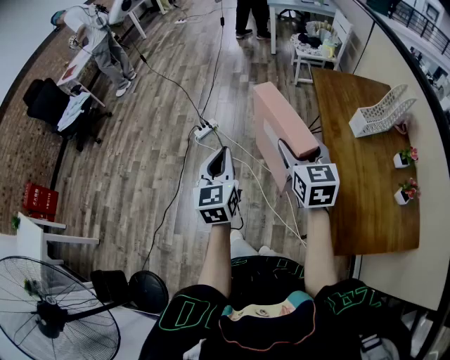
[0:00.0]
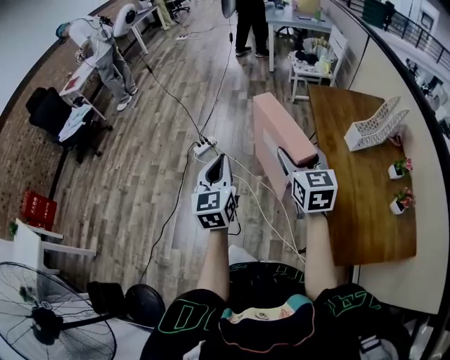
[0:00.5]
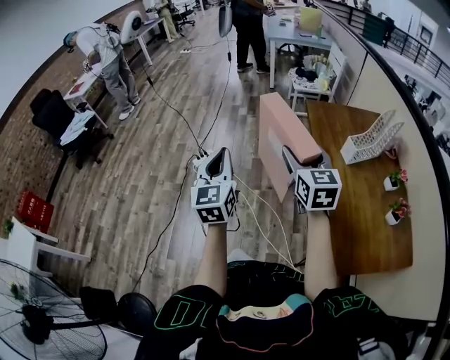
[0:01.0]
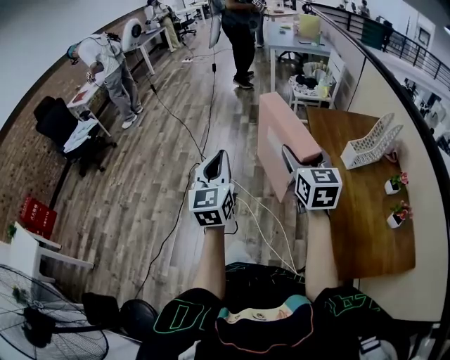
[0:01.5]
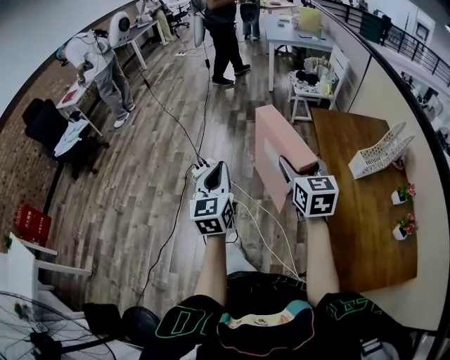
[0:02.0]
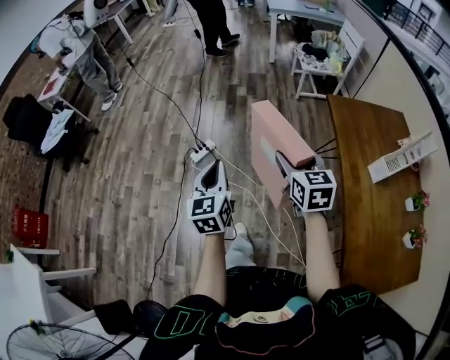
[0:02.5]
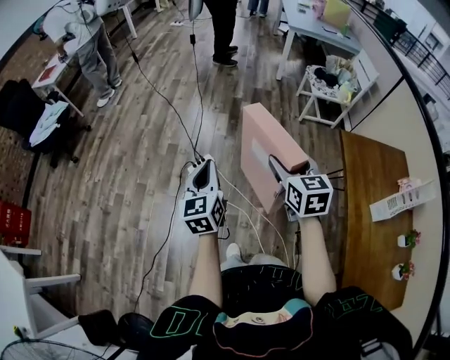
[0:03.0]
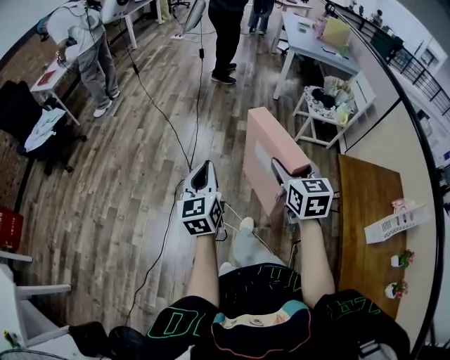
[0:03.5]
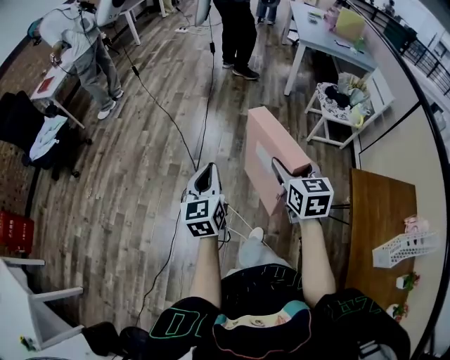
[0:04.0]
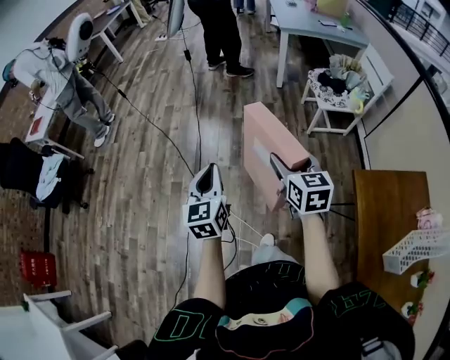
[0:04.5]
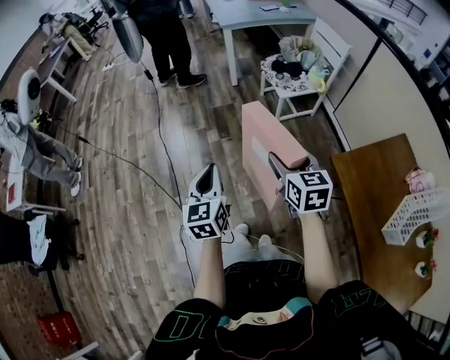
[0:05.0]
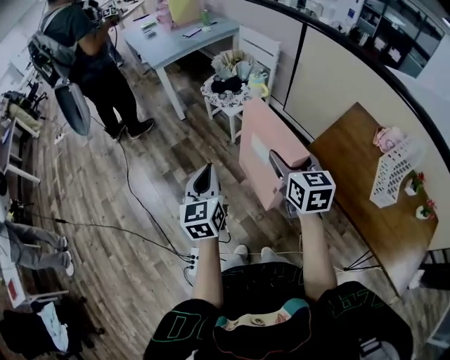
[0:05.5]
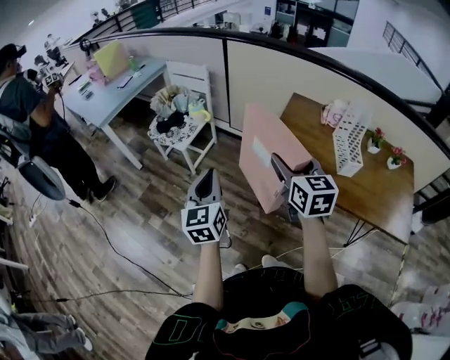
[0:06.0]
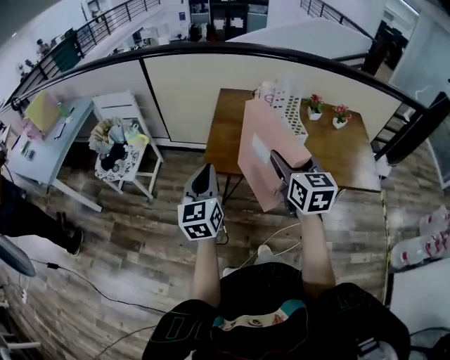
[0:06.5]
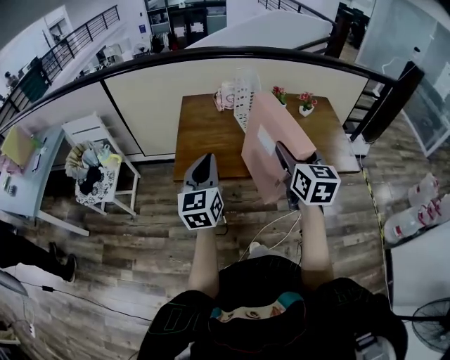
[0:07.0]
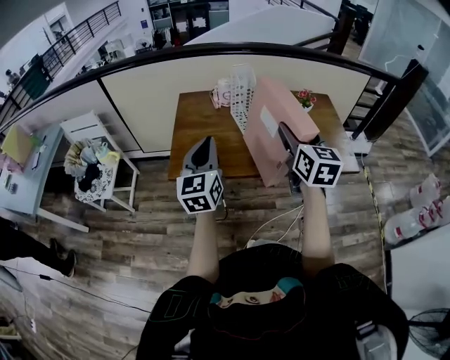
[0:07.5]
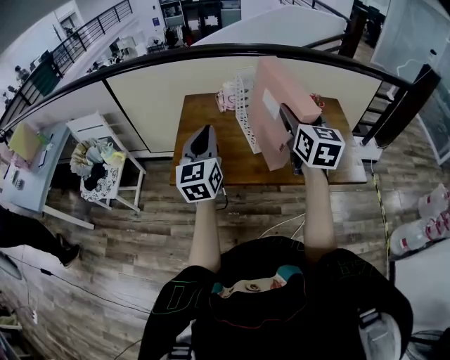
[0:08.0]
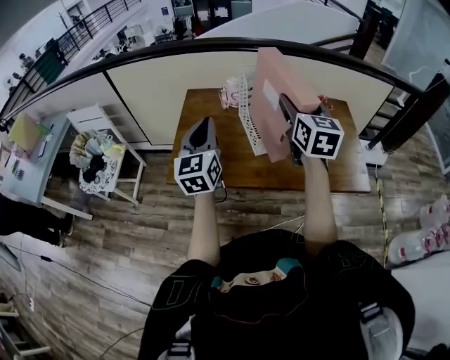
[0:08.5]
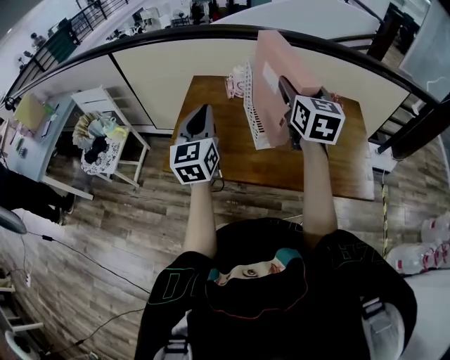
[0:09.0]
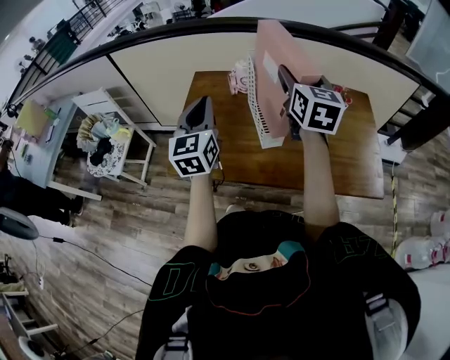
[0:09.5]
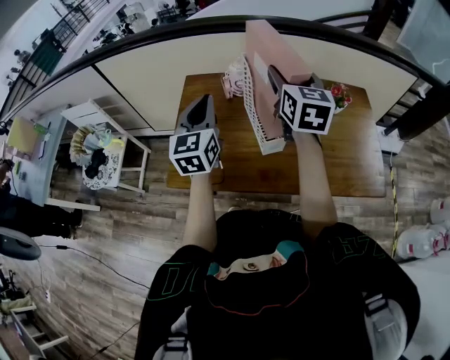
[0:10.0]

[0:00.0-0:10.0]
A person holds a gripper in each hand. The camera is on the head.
0:00.0 to 0:02.0: The two grippers go roughly 10 cm forward.
0:02.0 to 0:04.0: The pair of grippers is taken forward, approximately 50 cm.
0:04.0 to 0:06.0: The right gripper ends up approximately 30 cm from where it was, and rotates about 70 degrees, while the left gripper shifts by some 50 cm, and rotates about 70 degrees.
0:06.0 to 0:08.0: The left gripper changes place by about 40 cm, and turns by approximately 30 degrees; the right gripper ends up approximately 40 cm from where it was, and swivels about 40 degrees.
0:08.0 to 0:10.0: Both grippers travel together forward, roughly 20 cm.

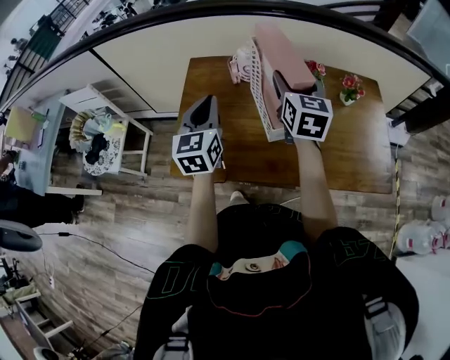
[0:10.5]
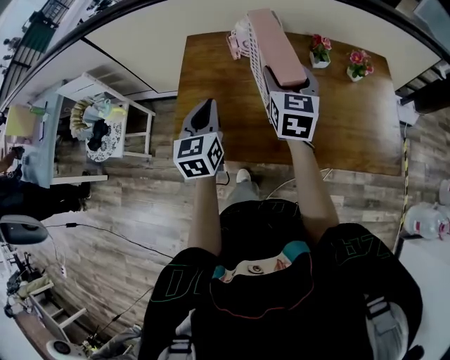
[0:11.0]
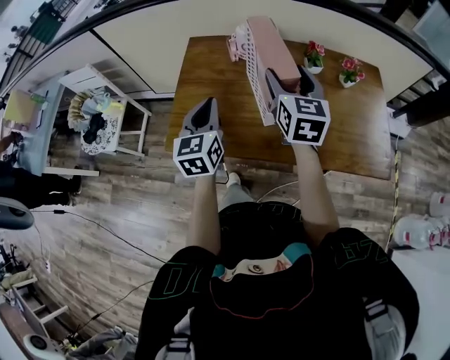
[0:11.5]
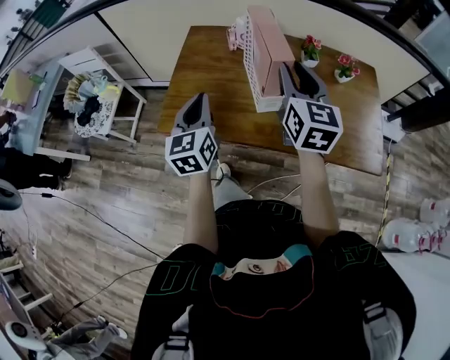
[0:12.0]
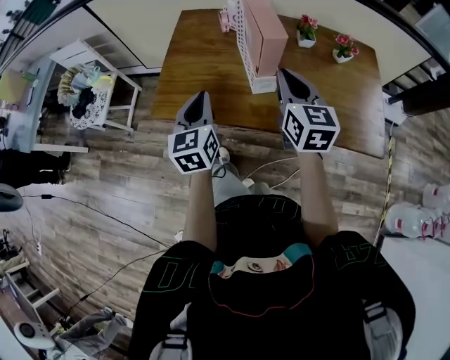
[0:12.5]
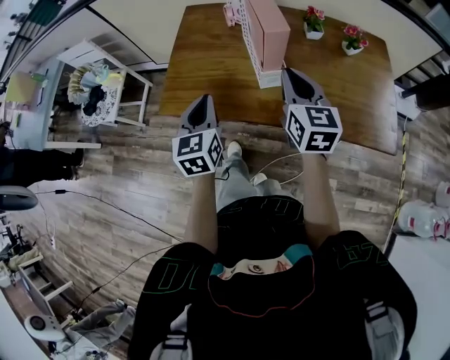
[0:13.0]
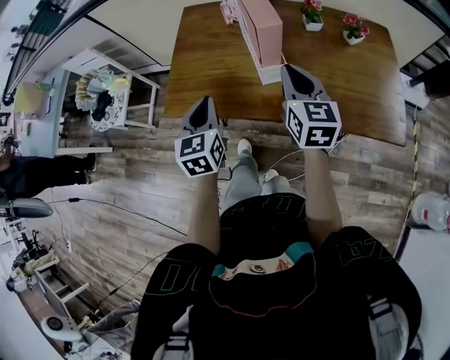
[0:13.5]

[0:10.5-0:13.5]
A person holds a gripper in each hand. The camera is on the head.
0:10.5 to 0:12.0: Both grippers move backward, some 15 cm. The right gripper closes its fingers.
0:12.0 to 0:13.5: The right gripper travels downward by approximately 10 cm, and closes its fingers. The left gripper moves downward, roughly 5 cm.

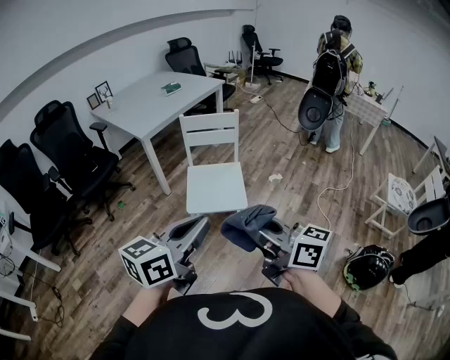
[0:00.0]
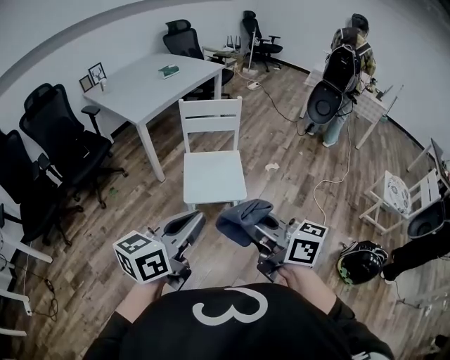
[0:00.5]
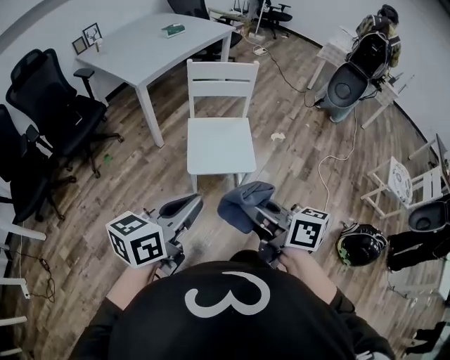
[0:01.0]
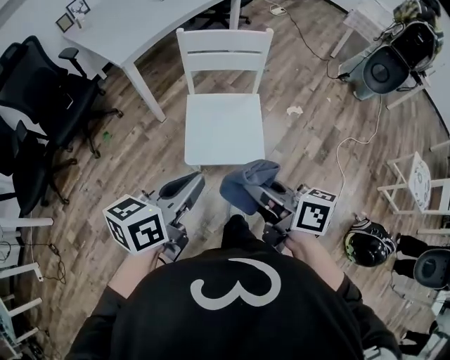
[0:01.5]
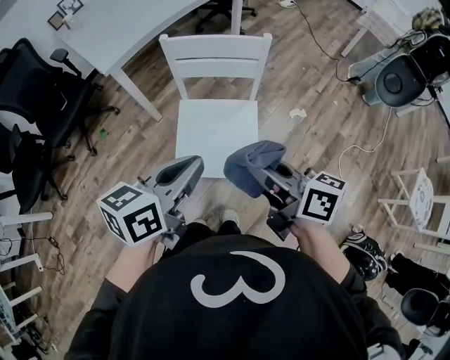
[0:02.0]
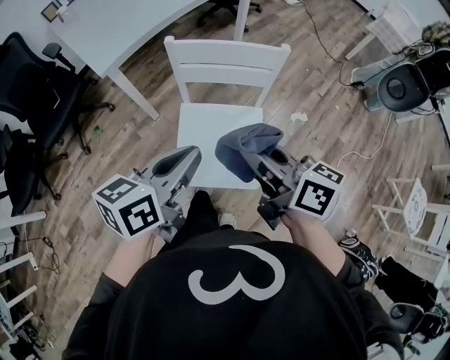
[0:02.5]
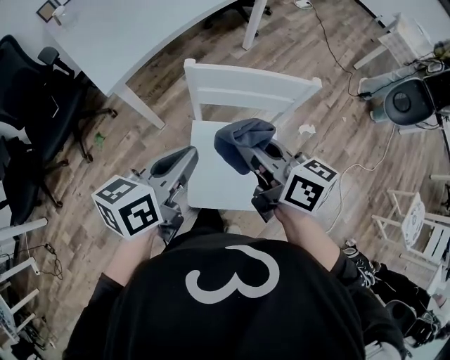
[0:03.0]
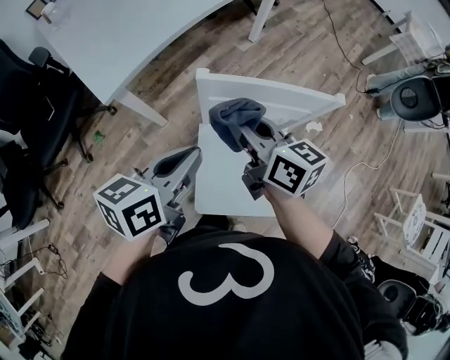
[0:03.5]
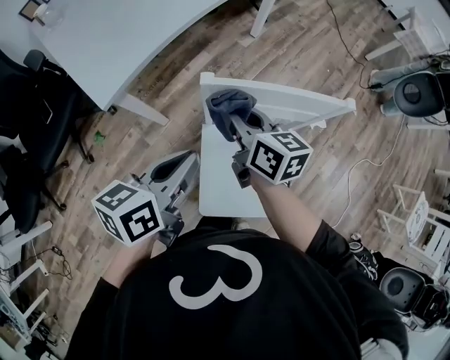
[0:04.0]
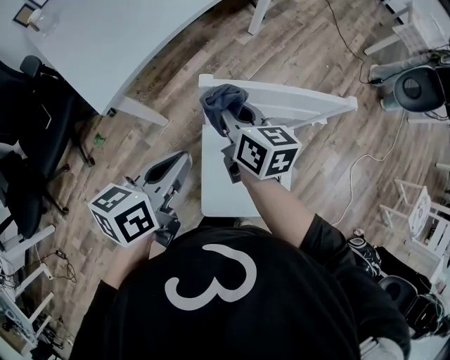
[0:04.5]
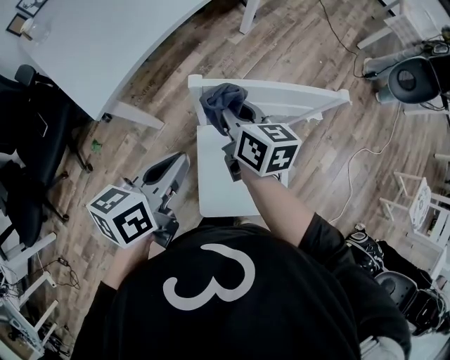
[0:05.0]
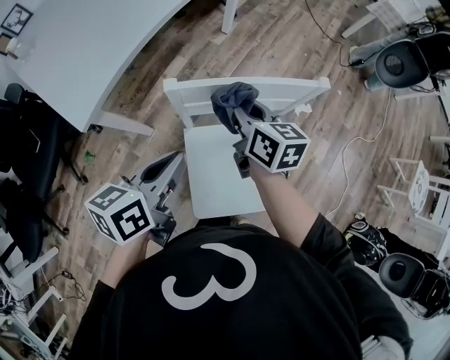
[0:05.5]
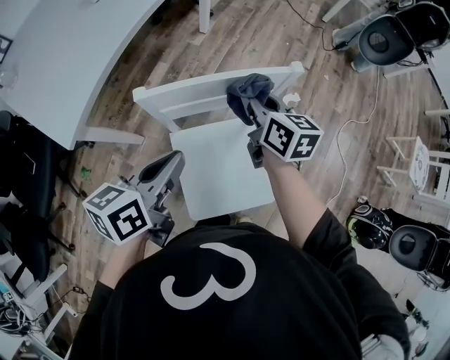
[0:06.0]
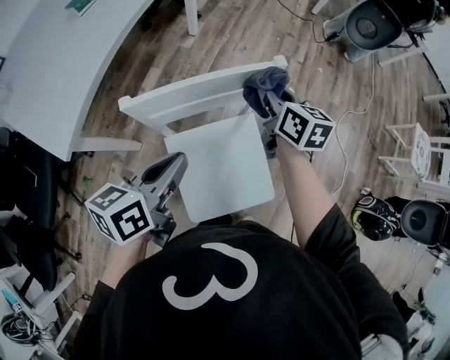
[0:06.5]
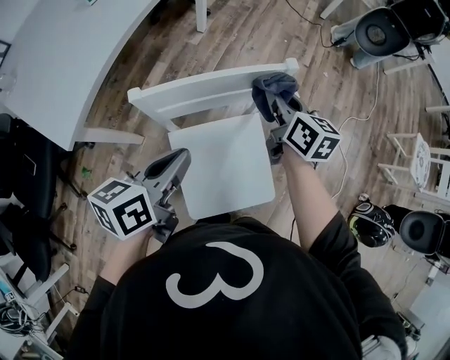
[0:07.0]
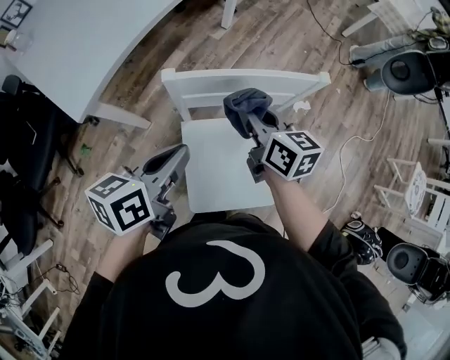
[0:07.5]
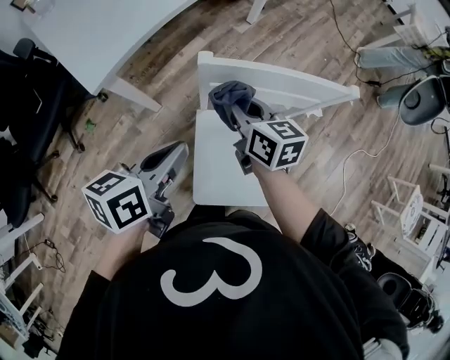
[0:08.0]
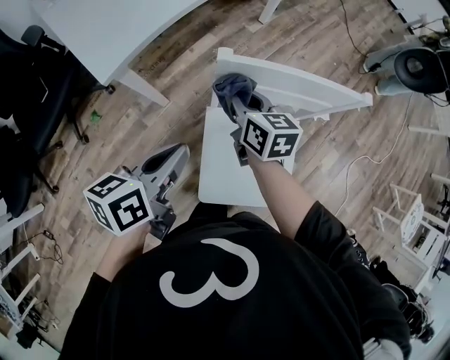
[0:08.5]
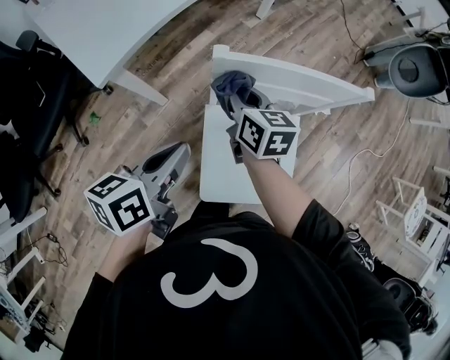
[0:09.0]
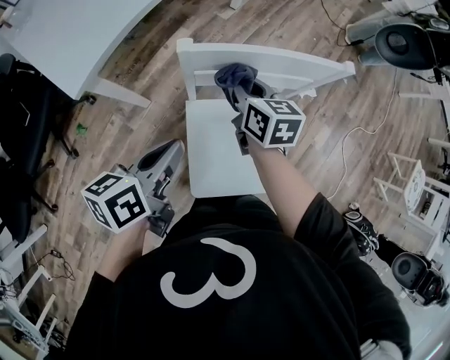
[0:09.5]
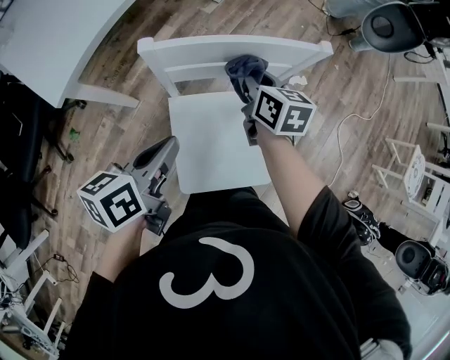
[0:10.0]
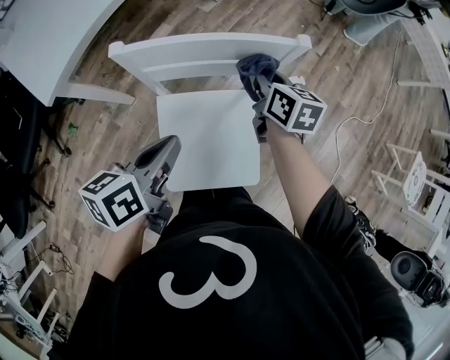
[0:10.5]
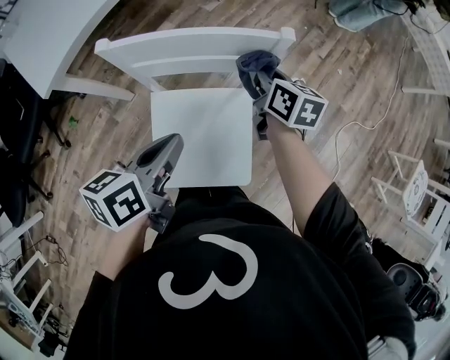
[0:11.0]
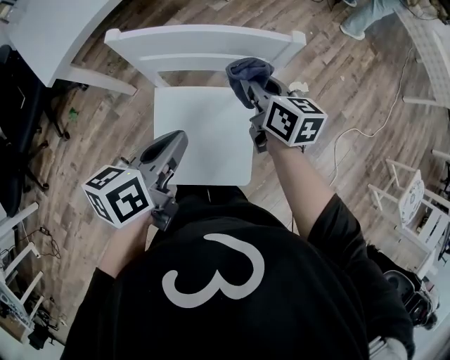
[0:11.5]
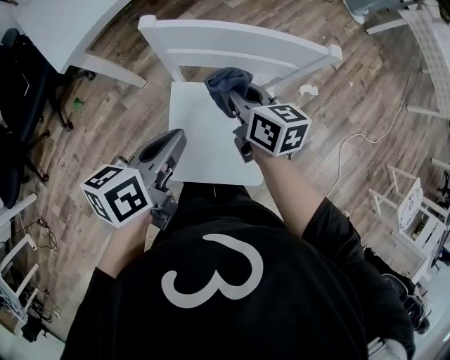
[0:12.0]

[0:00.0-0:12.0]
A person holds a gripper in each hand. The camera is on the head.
0:00.0 to 0:02.0: Both grippers travel together forward, approximately 40 cm. The right gripper changes its angle by approximately 20 degrees.
0:02.0 to 0:04.0: The grippers both shift forward and to the left by some 35 cm. The right gripper turns by about 20 degrees.
0:04.0 to 0:06.0: The right gripper travels to the right by roughly 20 cm, and swivels some 20 degrees. Meanwhile the left gripper shifts roughly 5 cm to the right.
0:06.0 to 0:08.0: The left gripper is displaced to the left by approximately 10 cm. Meanwhile the right gripper goes approximately 15 cm to the left and backward, and turns by about 20 degrees.
0:08.0 to 0:10.0: The right gripper is displaced to the right by roughly 15 cm. Meanwhile the left gripper goes about 5 cm to the right.
0:10.0 to 0:12.0: The right gripper is displaced backward by roughly 5 cm, moves roughly 10 cm to the right and comes back, and changes its angle by roughly 20 degrees.

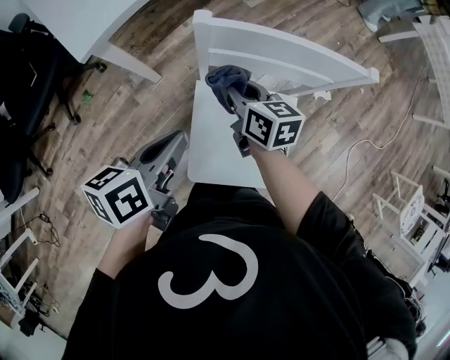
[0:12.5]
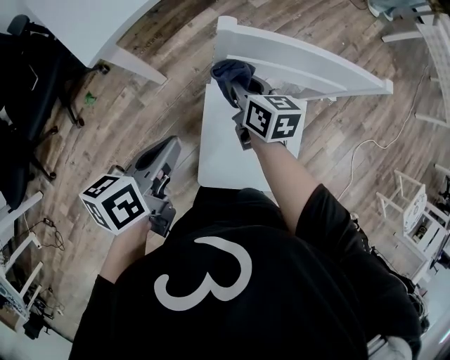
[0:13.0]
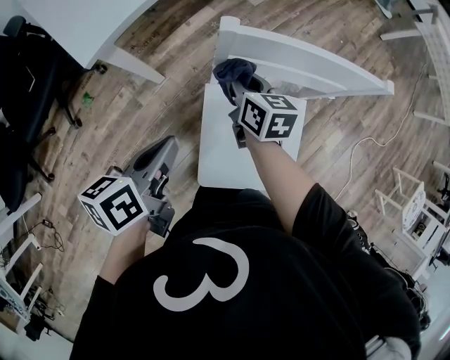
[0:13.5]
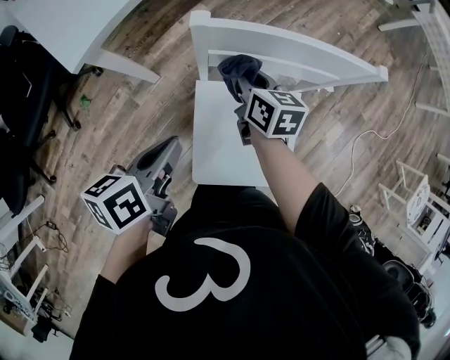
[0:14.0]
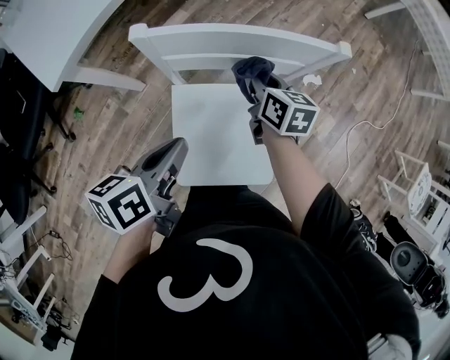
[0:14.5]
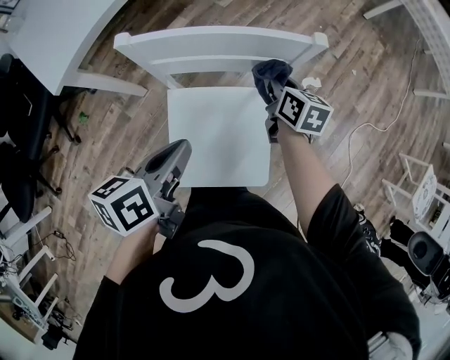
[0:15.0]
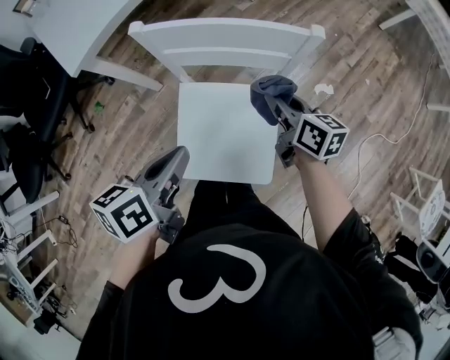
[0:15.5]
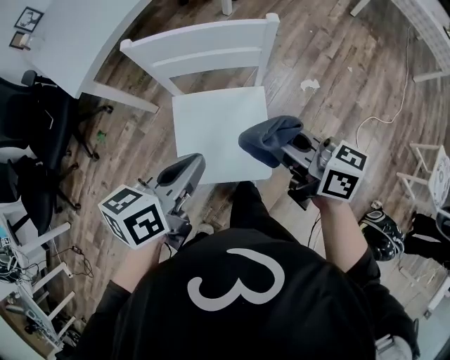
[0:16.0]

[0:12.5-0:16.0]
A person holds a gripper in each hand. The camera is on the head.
0:12.5 to 0:14.5: The left gripper shifts approximately 5 cm to the right; the right gripper moves to the right, roughly 15 cm.
0:14.5 to 0:16.0: The right gripper goes roughly 30 cm backward and upward, and rotates approximately 40 degrees; the left gripper travels to the right, backward and upward by about 15 cm.
